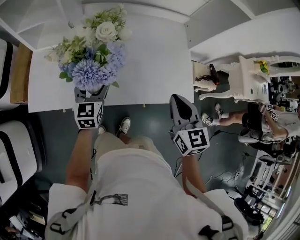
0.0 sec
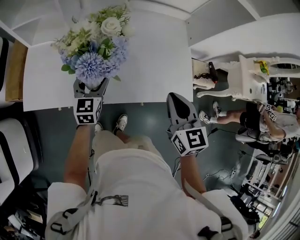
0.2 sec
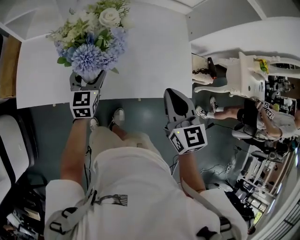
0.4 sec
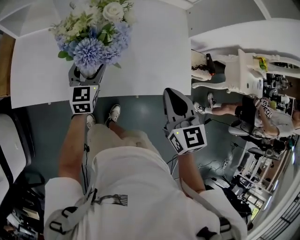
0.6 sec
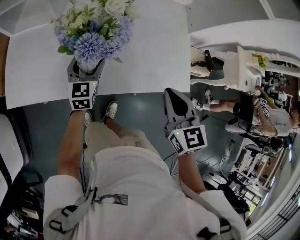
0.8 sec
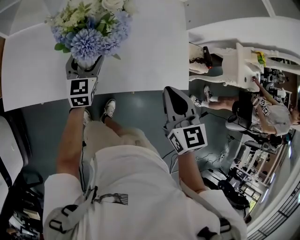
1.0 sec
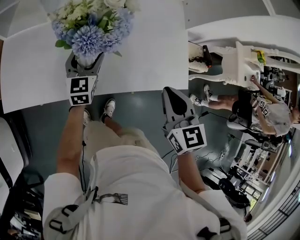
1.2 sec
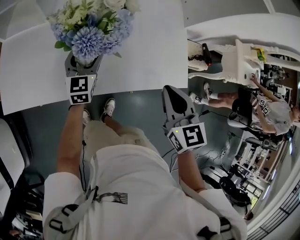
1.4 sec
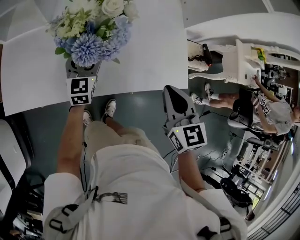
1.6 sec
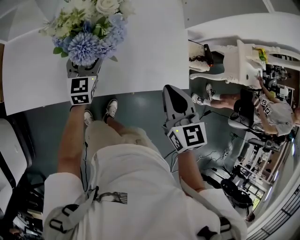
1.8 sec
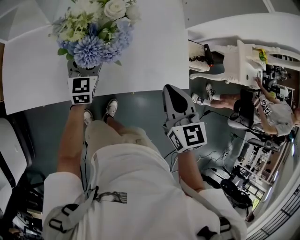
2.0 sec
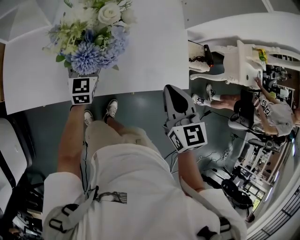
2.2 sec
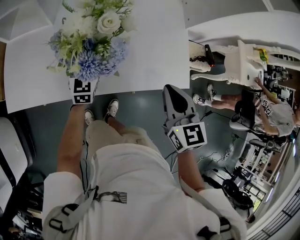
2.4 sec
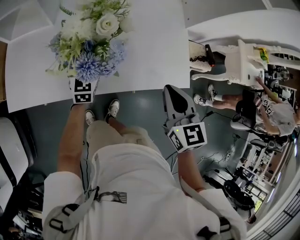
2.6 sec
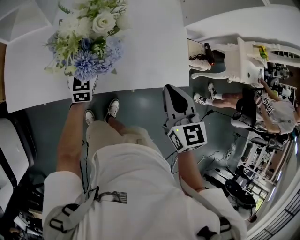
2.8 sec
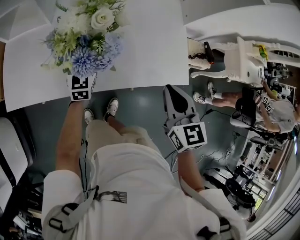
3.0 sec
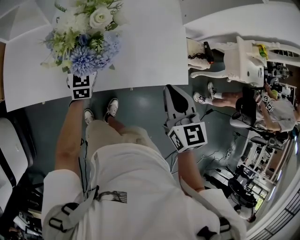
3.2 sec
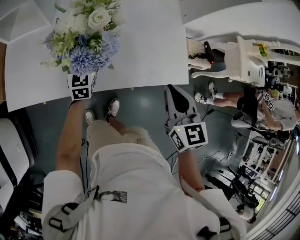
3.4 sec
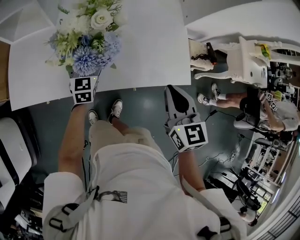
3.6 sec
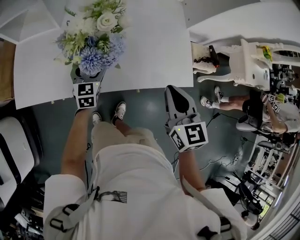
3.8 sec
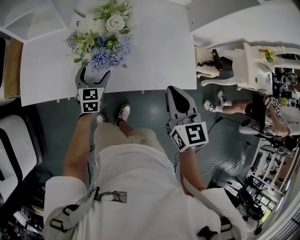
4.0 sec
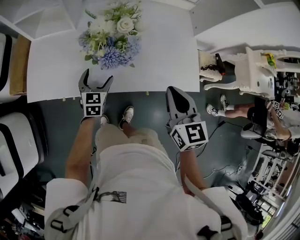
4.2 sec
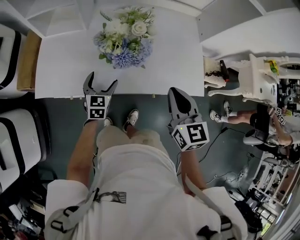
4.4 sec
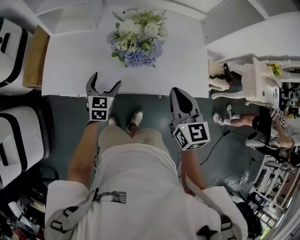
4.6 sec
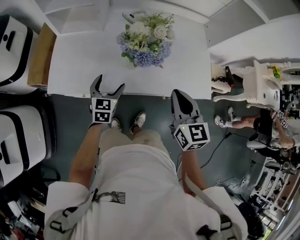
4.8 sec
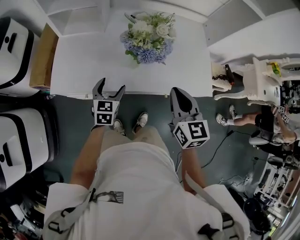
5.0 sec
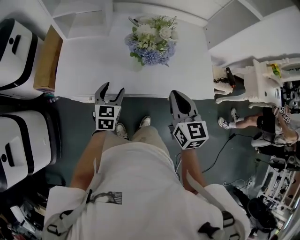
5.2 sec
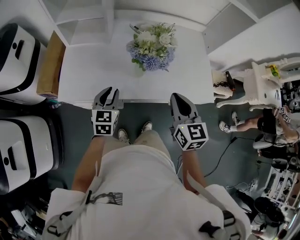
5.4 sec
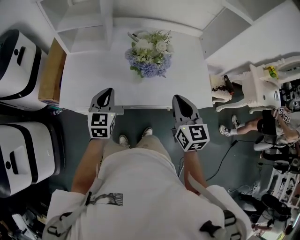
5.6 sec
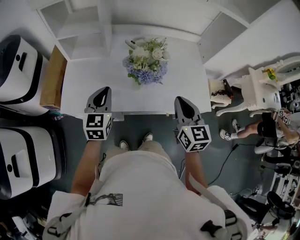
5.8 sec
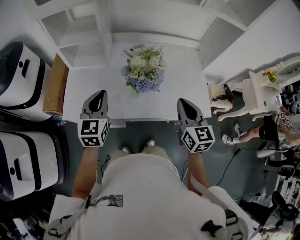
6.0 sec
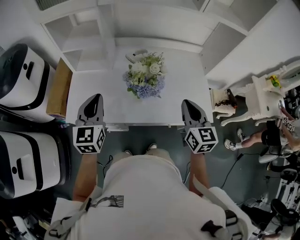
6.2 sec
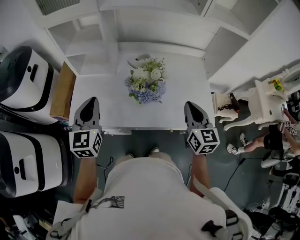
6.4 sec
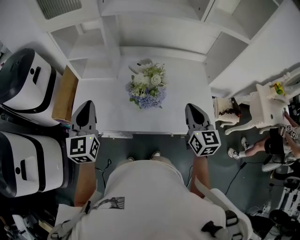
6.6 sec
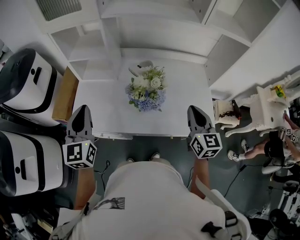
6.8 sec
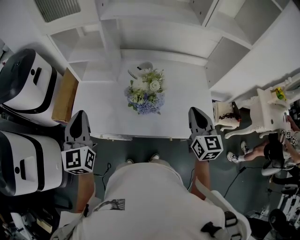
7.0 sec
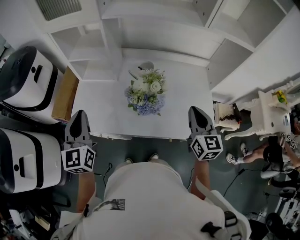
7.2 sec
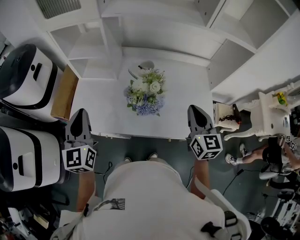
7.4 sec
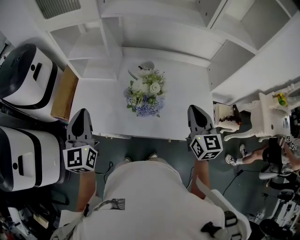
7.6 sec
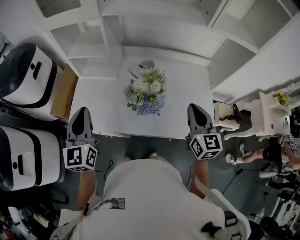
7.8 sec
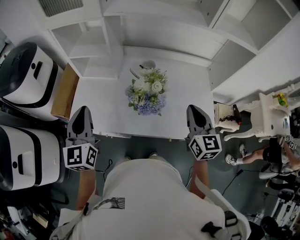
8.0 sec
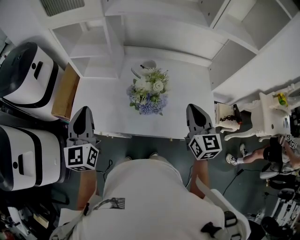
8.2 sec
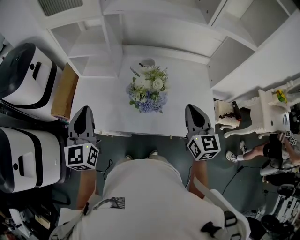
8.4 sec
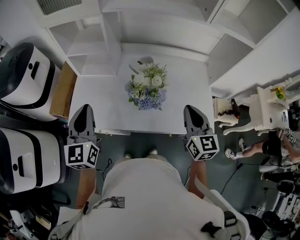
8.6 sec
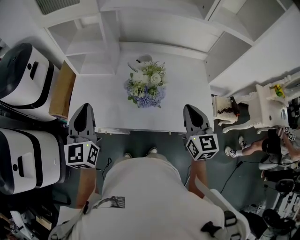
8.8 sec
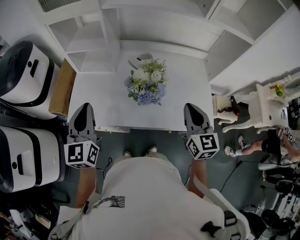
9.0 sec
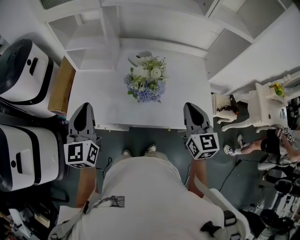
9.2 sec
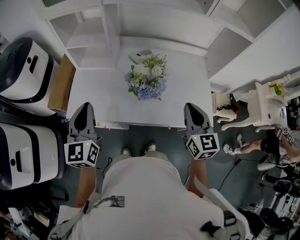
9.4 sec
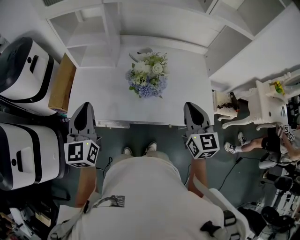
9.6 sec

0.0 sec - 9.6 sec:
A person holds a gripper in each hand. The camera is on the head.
0.0 sec - 1.6 sec: The left gripper moves roughly 5 cm; the right gripper ends up about 5 cm from where it was.
1.6 sec - 3.2 sec: There are only small adjustments of the grippers.
3.2 sec - 4.8 sec: The right gripper travels to the left by roughly 10 cm; the left gripper is displaced backward and to the left by about 15 cm.
4.8 sec - 6.4 sec: The right gripper heads upward and forward, covering some 10 cm; the left gripper travels upward by roughly 25 cm, rotates approximately 20 degrees, and closes its fingers.
6.4 sec - 8.0 sec: The grippers move only a little.
8.0 sec - 9.6 sec: The right gripper moves backward, some 5 cm.

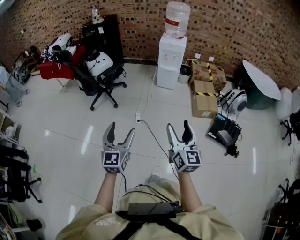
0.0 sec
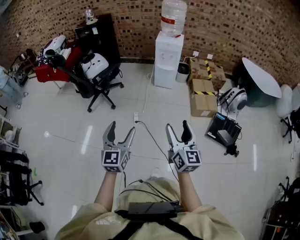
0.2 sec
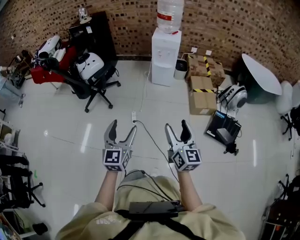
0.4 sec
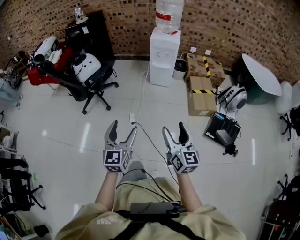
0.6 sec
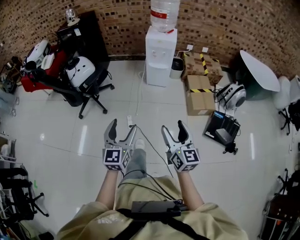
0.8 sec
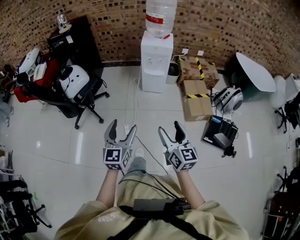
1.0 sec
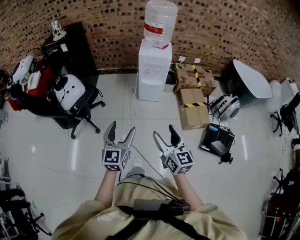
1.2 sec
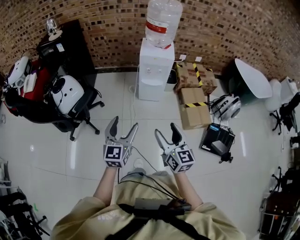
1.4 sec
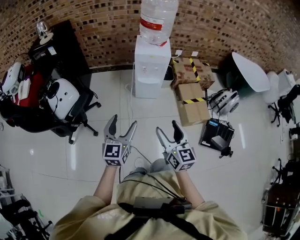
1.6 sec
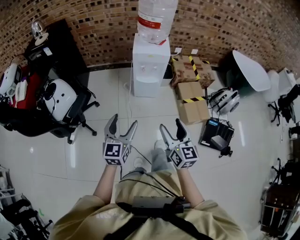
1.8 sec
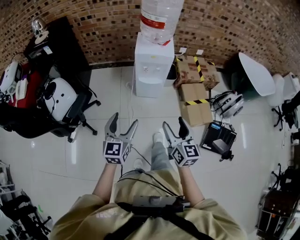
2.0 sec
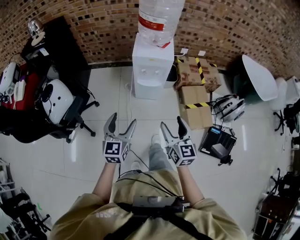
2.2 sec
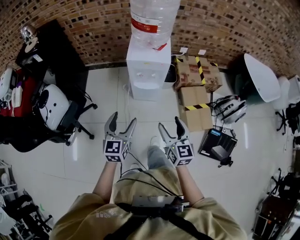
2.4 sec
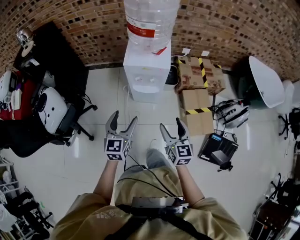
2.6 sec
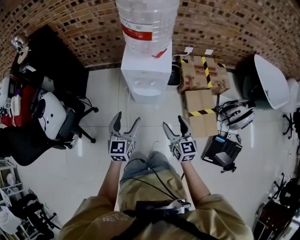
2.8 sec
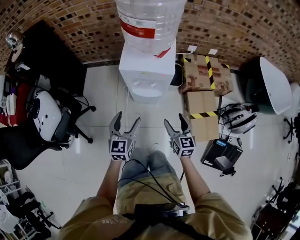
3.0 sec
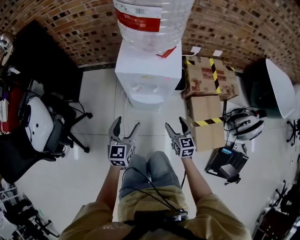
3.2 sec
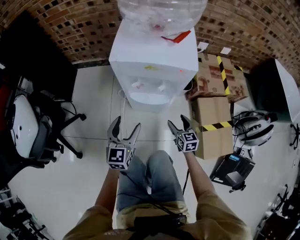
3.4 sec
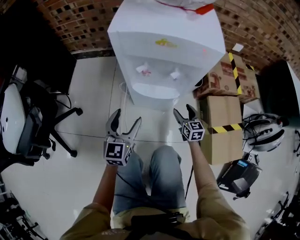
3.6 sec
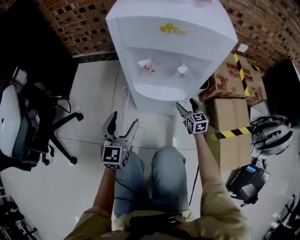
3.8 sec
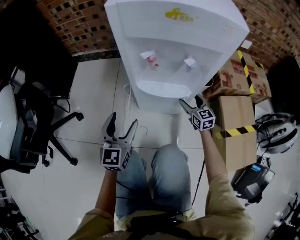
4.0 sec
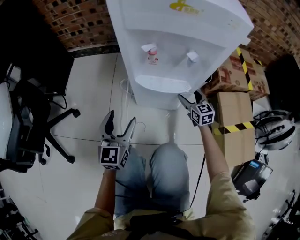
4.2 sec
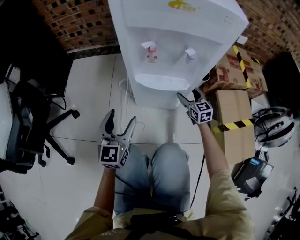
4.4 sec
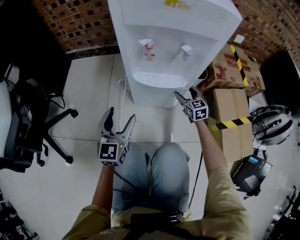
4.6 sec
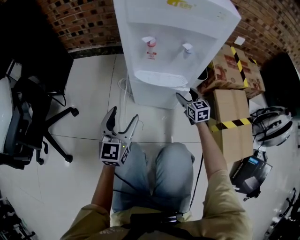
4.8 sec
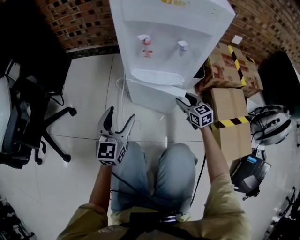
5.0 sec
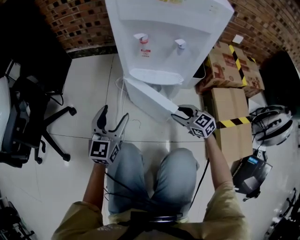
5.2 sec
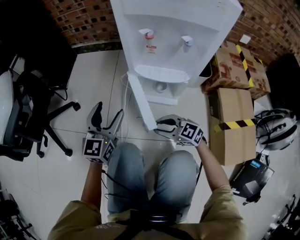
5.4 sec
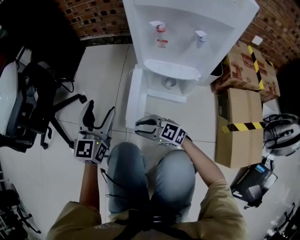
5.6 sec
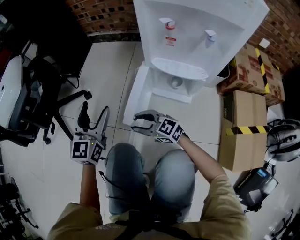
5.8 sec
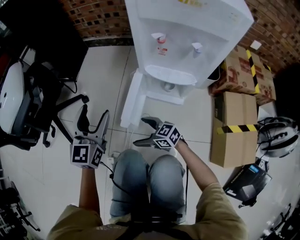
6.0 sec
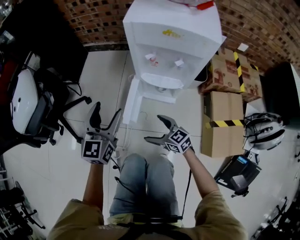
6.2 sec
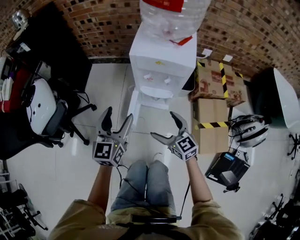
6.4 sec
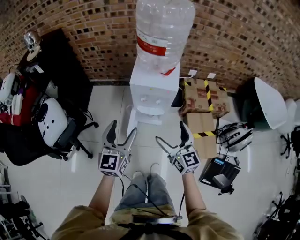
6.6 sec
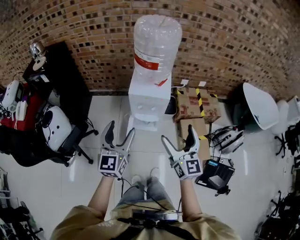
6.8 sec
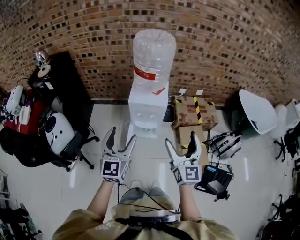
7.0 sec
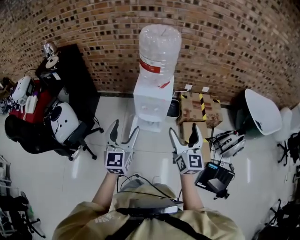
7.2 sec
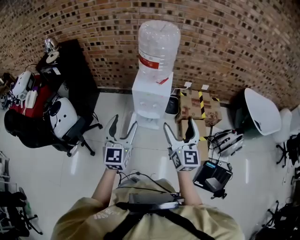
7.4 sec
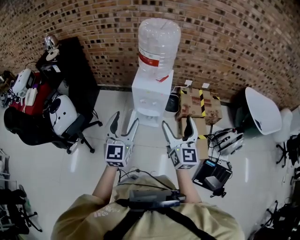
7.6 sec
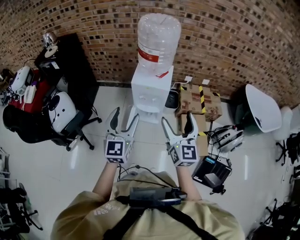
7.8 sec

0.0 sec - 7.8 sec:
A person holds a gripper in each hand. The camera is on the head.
0.0 sec - 1.6 sec: The pair of grippers is taken forward, roughly 50 cm.
1.6 sec - 3.2 sec: Both grippers travel together forward and downward, approximately 50 cm.
3.2 sec - 4.6 sec: The left gripper moves downward, some 30 cm. Meanwhile the right gripper is displaced downward and forward by approximately 40 cm.
4.6 sec - 6.2 sec: The right gripper changes place by approximately 35 cm, changes its angle by roughly 40 degrees, and opens. Meanwhile the left gripper shifts approximately 20 cm upward.
6.2 sec - 7.8 sec: The grippers both shift upward by roughly 60 cm. The right gripper turns by some 60 degrees.

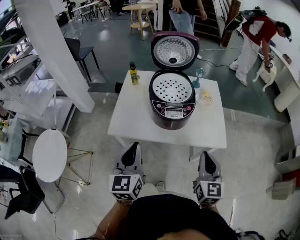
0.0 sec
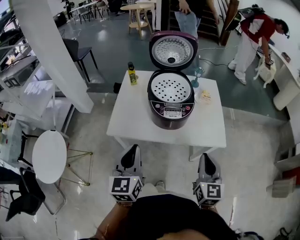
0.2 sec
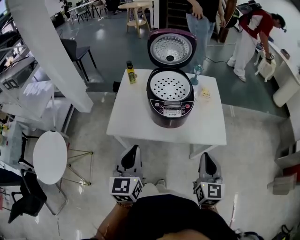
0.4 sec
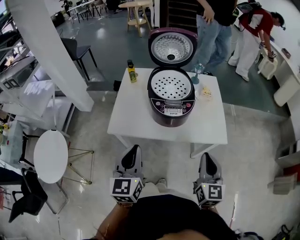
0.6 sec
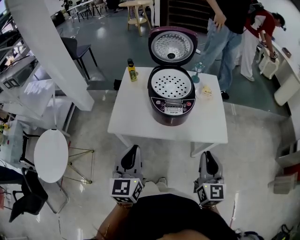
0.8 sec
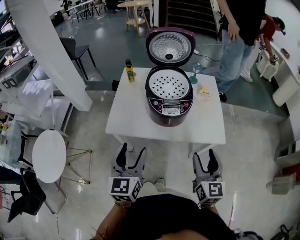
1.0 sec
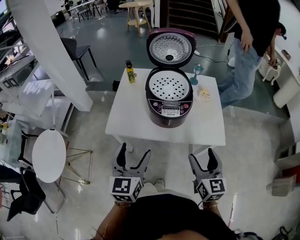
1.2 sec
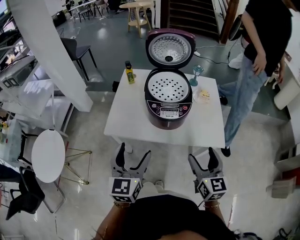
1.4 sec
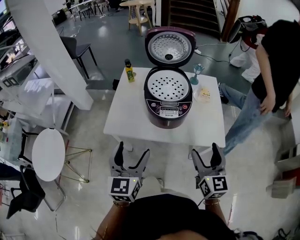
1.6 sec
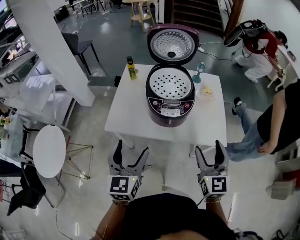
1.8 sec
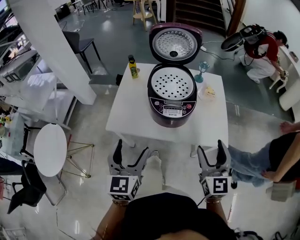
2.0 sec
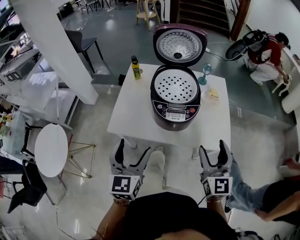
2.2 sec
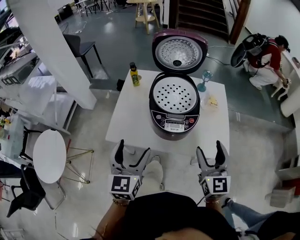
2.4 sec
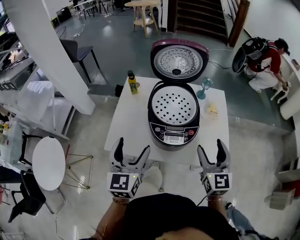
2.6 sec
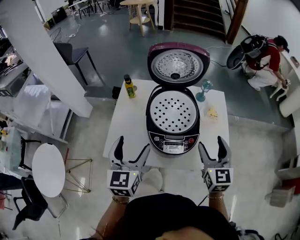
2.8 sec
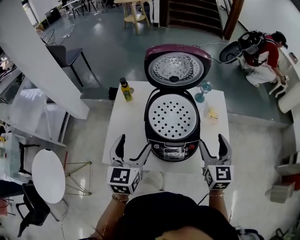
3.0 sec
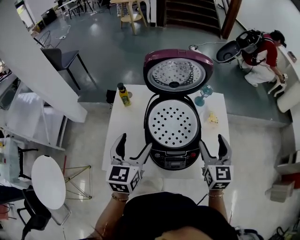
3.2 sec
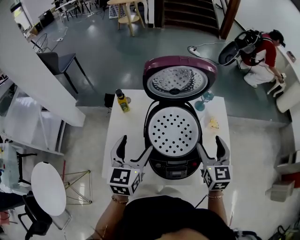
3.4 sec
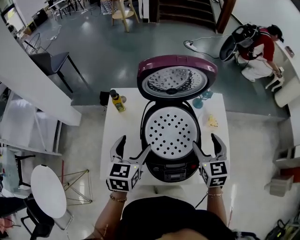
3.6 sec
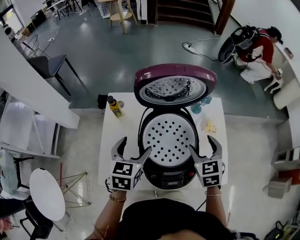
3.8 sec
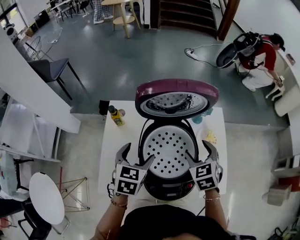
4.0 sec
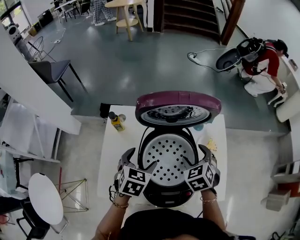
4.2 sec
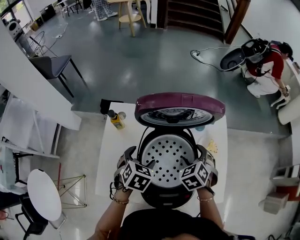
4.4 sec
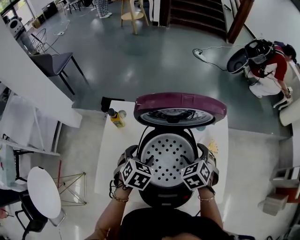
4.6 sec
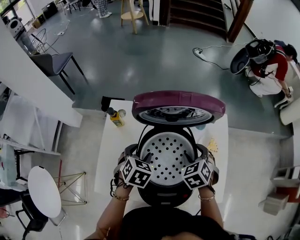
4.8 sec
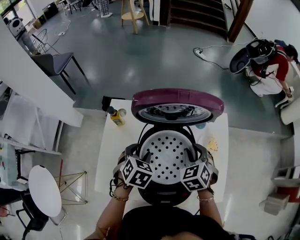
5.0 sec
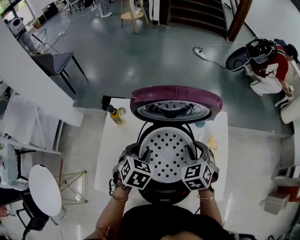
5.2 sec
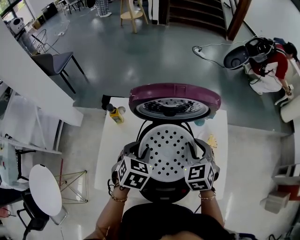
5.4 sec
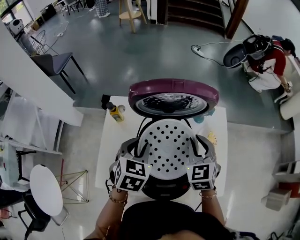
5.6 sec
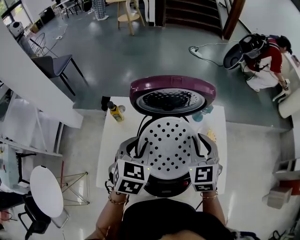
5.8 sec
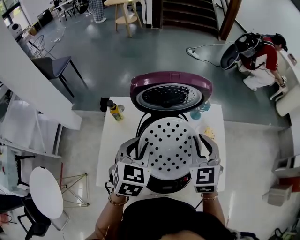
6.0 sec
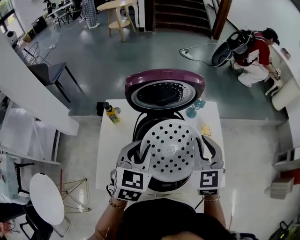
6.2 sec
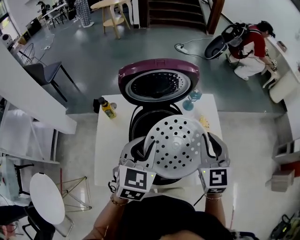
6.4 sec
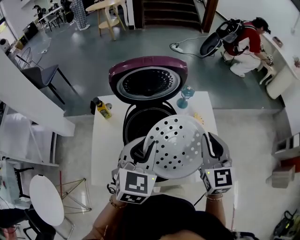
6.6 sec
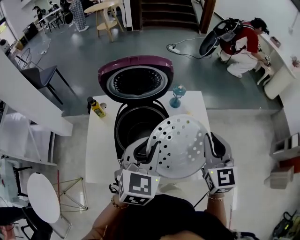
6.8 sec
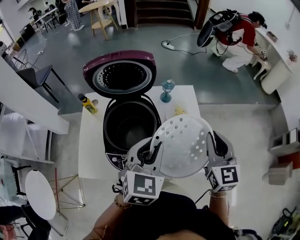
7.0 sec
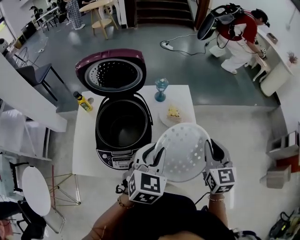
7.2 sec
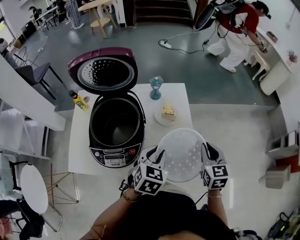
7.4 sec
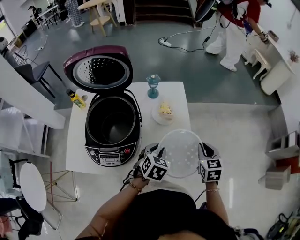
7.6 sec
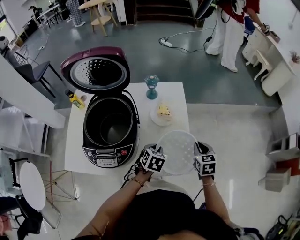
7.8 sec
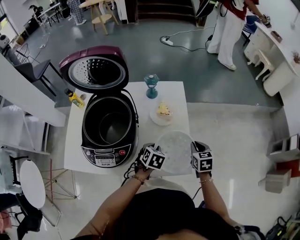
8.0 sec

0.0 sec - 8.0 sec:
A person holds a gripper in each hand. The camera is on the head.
0.0 sec - 1.6 sec: The right gripper opens up; the left gripper opens its fingers.
1.6 sec - 3.2 sec: The two grippers go about 25 cm forward.
3.2 sec - 4.8 sec: Both grippers move forward and downward, approximately 20 cm. The left gripper points its fingers some 40 degrees further downward, and closes; the right gripper points its fingers approximately 40 degrees further downward.
4.8 sec - 6.4 sec: The right gripper heads upward and backward, covering some 15 cm, tips its fingers upward by approximately 40 degrees, and closes. The left gripper travels upward, backward and to the right by approximately 15 cm, rotates roughly 30 degrees, and closes its fingers.
6.4 sec - 8.0 sec: The right gripper goes approximately 40 cm to the right and downward, and tilts its fingers roughly 30 degrees downward; the left gripper heads downward and to the right, covering approximately 40 cm, and tilts its fingers approximately 30 degrees downward.
